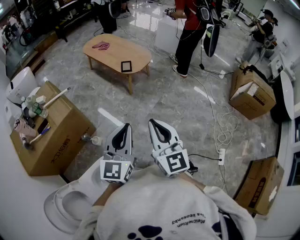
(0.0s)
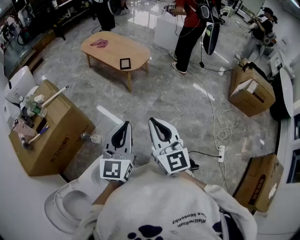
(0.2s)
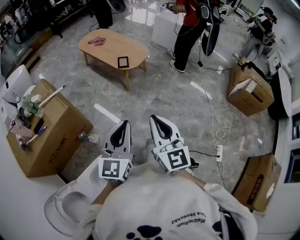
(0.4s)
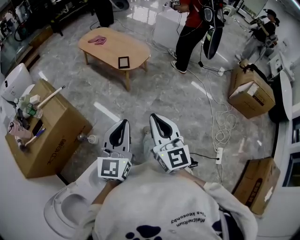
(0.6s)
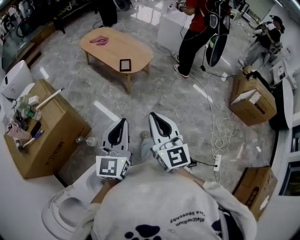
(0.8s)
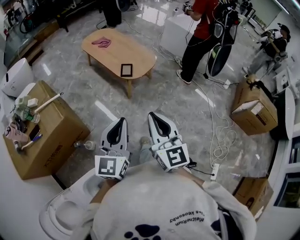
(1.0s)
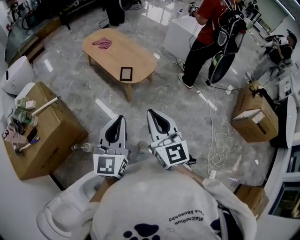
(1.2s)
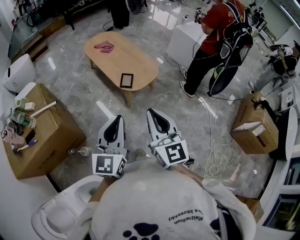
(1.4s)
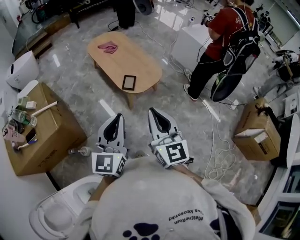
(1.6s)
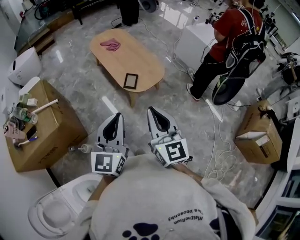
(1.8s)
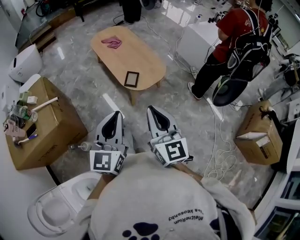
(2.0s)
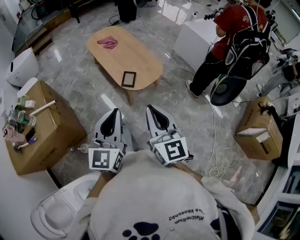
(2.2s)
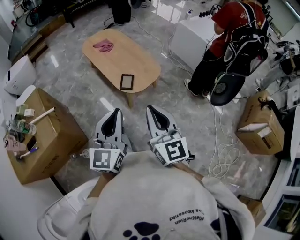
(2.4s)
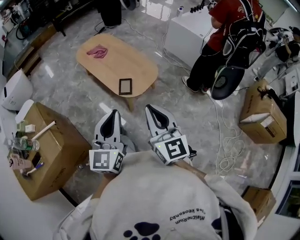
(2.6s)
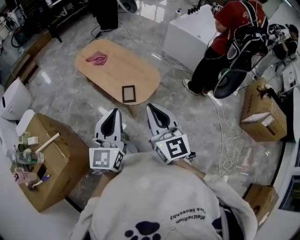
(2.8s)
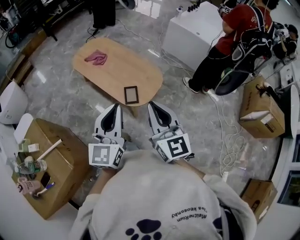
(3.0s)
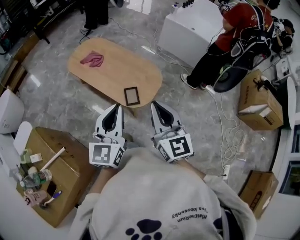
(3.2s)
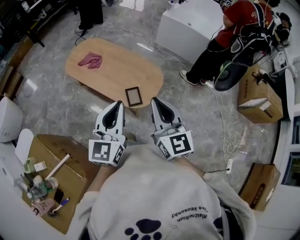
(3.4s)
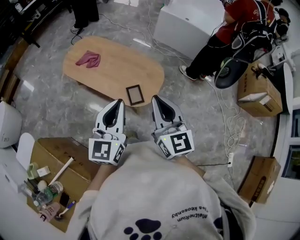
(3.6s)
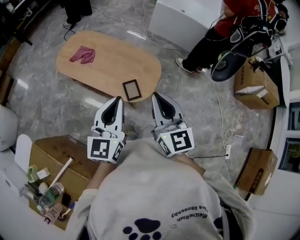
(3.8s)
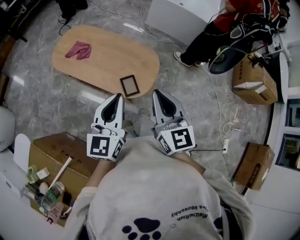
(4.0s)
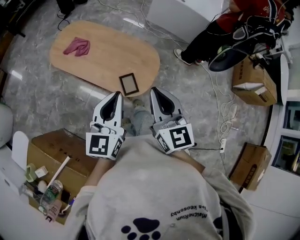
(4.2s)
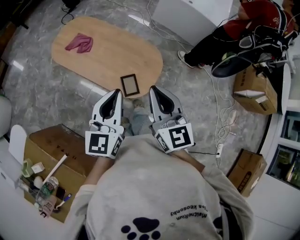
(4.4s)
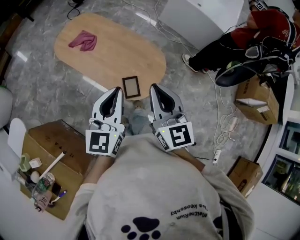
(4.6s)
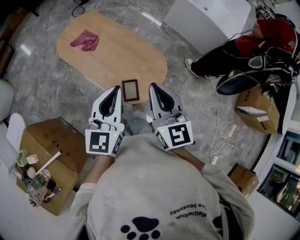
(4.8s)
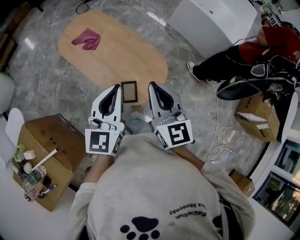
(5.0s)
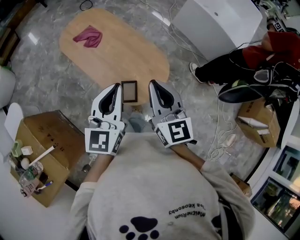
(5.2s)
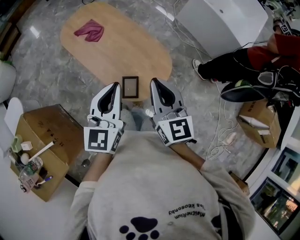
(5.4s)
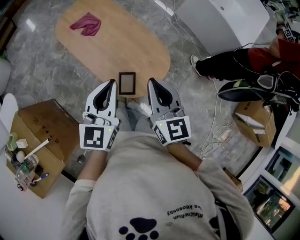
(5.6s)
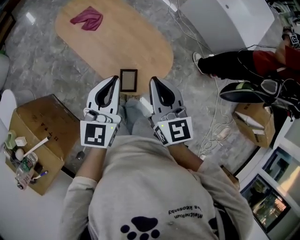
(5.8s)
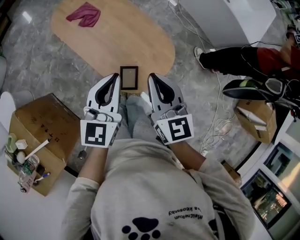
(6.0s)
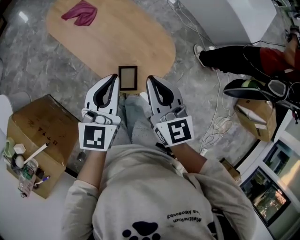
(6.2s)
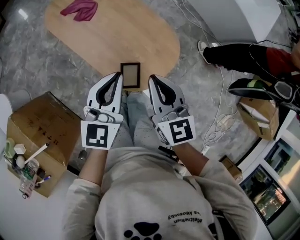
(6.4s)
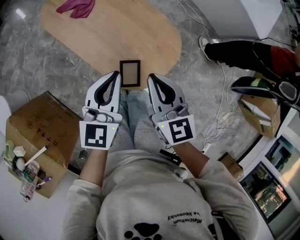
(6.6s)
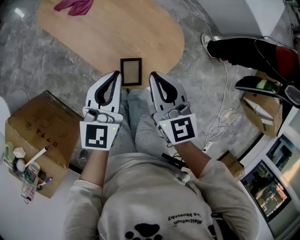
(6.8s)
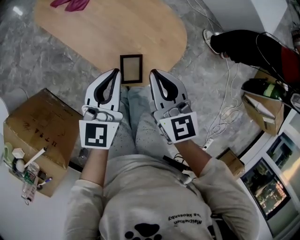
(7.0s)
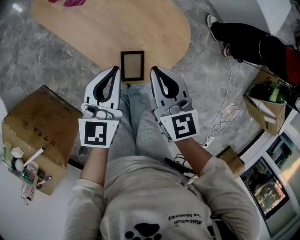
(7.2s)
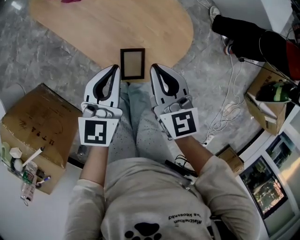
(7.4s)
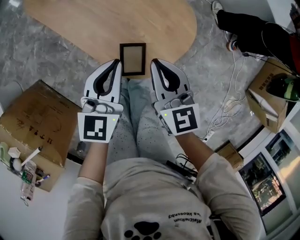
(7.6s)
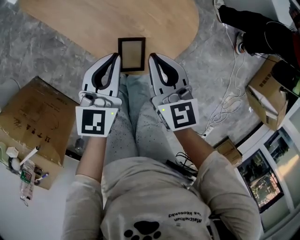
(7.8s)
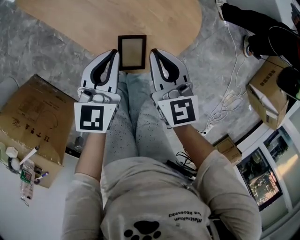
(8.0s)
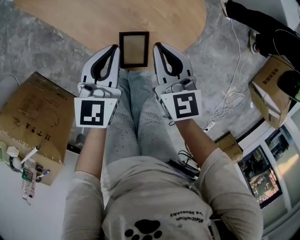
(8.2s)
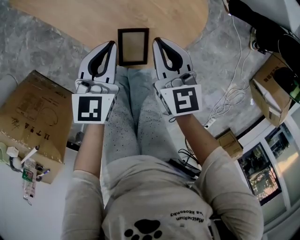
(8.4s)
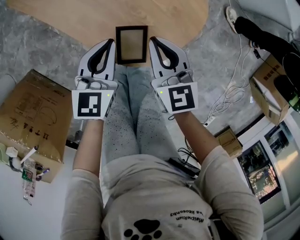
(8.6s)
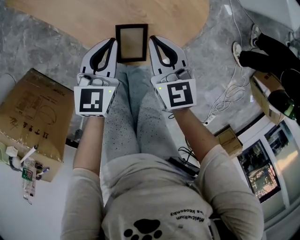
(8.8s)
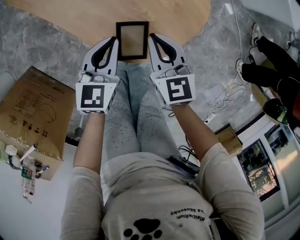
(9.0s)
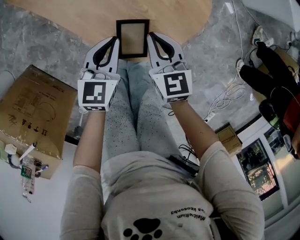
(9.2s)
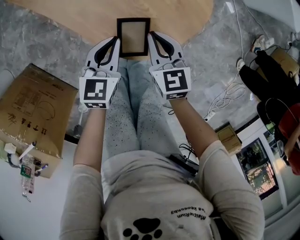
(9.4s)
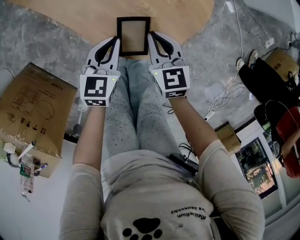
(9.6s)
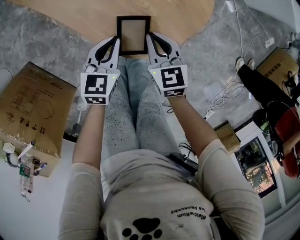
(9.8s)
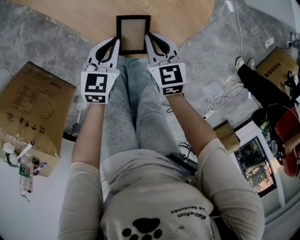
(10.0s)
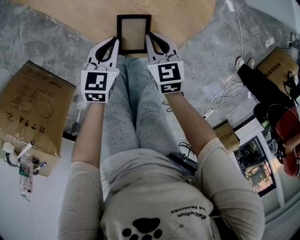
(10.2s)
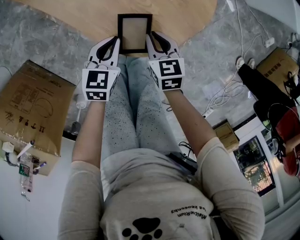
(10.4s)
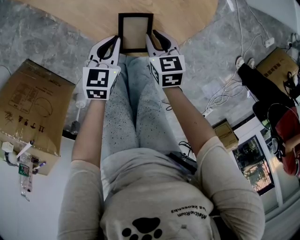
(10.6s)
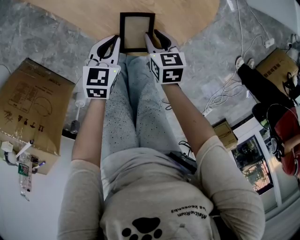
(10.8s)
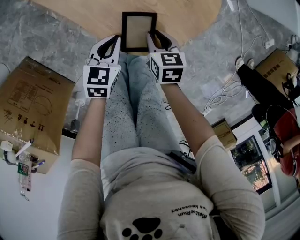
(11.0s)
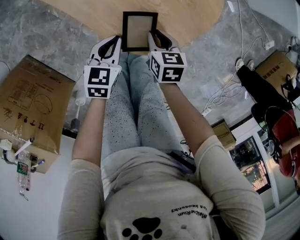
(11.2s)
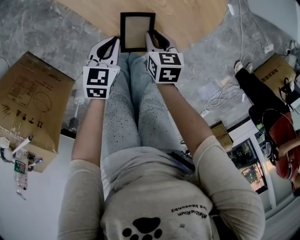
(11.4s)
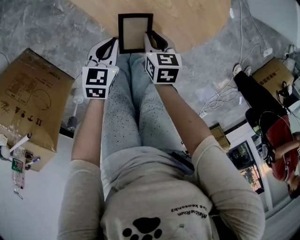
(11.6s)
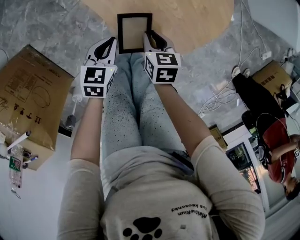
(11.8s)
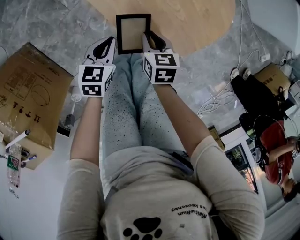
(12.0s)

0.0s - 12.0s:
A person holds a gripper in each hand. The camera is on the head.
0.0s - 1.6s: Both grippers move forward, about 35 cm.
1.6s - 3.0s: Both grippers travel together forward, some 20 cm.
3.0s - 4.4s: The right gripper moves forward and to the left, about 15 cm. Meanwhile the left gripper moves forward, roughly 15 cm.
4.4s - 6.0s: The two grippers go approximately 15 cm forward and downward.
6.0s - 7.6s: The two grippers go some 20 cm downward.
7.6s - 9.0s: Both grippers travel together downward, roughly 10 cm.
9.0s - 10.4s: The grippers both shift downward by about 10 cm.
10.4s - 12.0s: The grippers both shift to the left by about 10 cm.

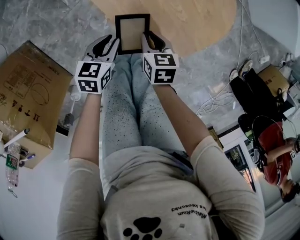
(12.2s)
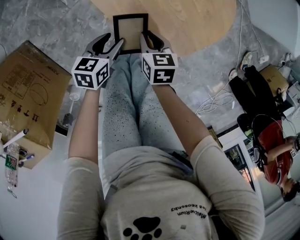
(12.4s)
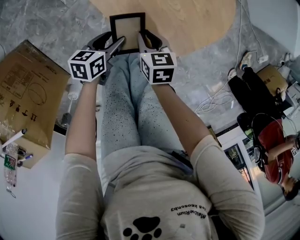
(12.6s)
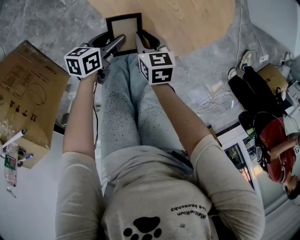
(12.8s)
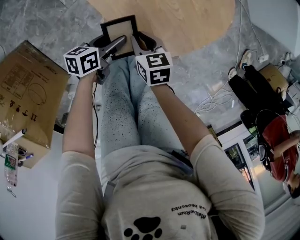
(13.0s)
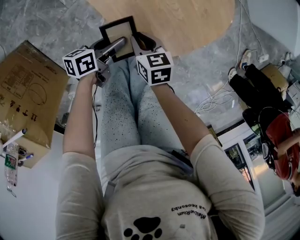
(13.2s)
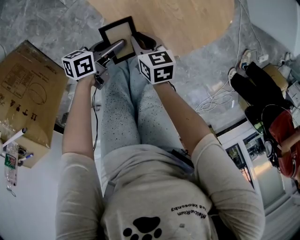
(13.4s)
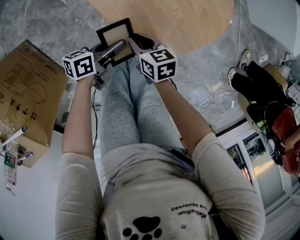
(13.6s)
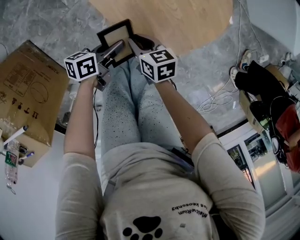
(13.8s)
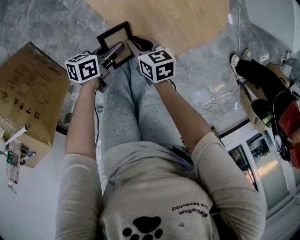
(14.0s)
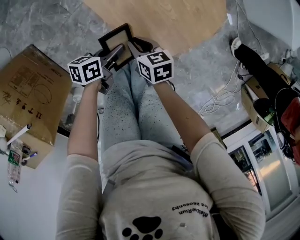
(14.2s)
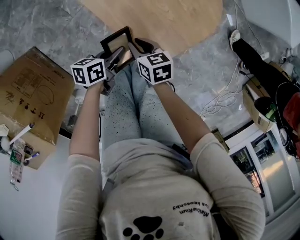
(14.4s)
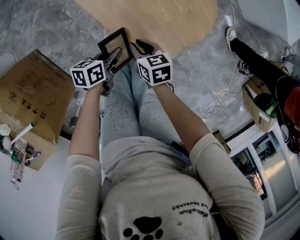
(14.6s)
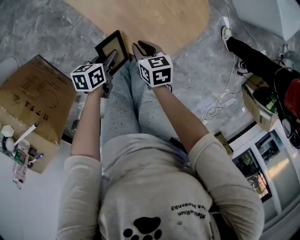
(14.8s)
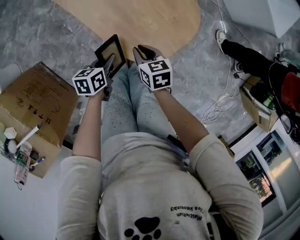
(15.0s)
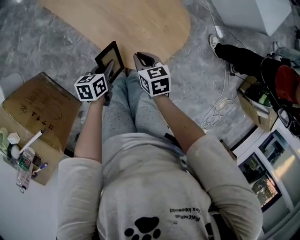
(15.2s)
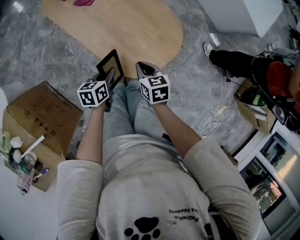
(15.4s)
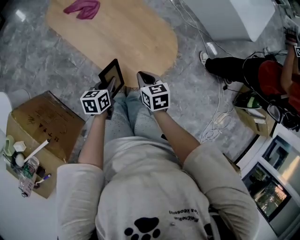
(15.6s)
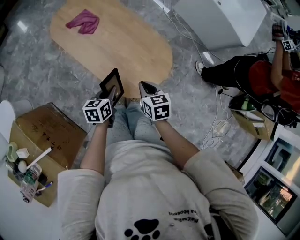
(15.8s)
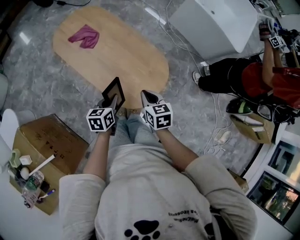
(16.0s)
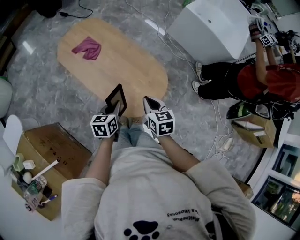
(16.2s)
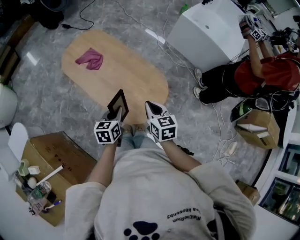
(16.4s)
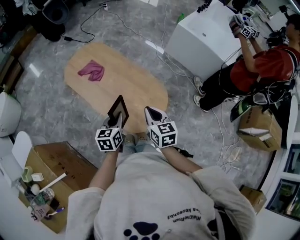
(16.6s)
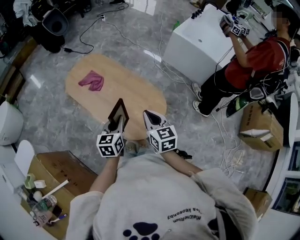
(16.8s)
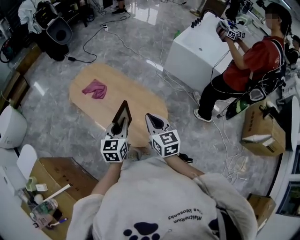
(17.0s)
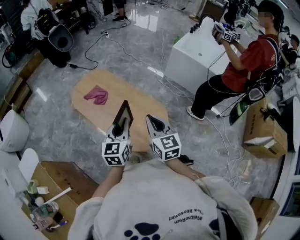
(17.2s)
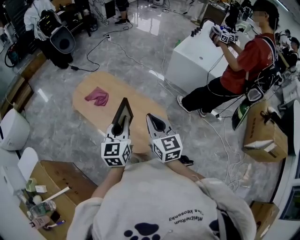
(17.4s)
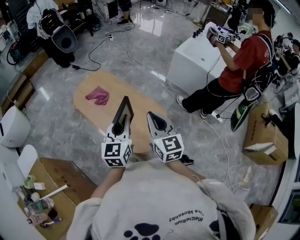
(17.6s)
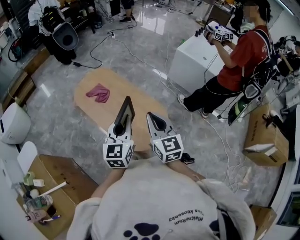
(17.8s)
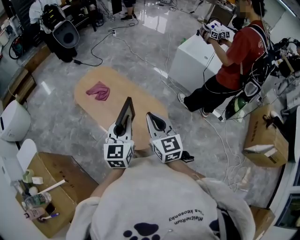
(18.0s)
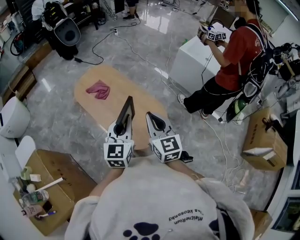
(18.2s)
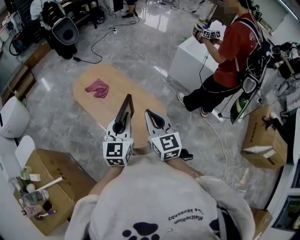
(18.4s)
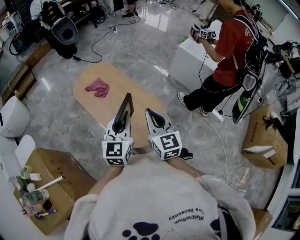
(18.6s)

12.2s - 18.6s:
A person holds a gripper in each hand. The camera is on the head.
12.2s - 13.8s: The left gripper swivels roughly 40 degrees, and opens, then closes once more.
13.8s - 15.4s: The left gripper moves upward, approximately 15 cm, and rotates some 30 degrees. Meanwhile the right gripper shifts some 20 cm upward and to the right.
15.4s - 17.0s: The grippers both shift upward by approximately 30 cm. The right gripper angles its fingers upward, by roughly 30 degrees, while the left gripper changes its angle by roughly 40 degrees.
17.0s - 18.6s: The right gripper is displaced upward by about 5 cm. The left gripper is displaced upward and to the right by some 10 cm.

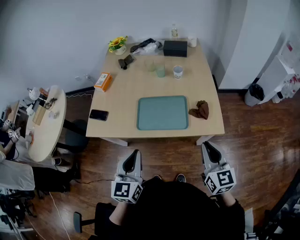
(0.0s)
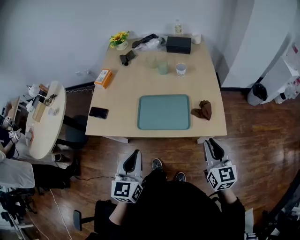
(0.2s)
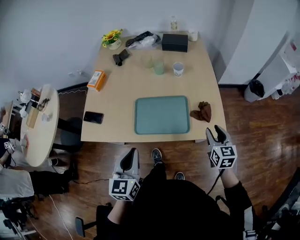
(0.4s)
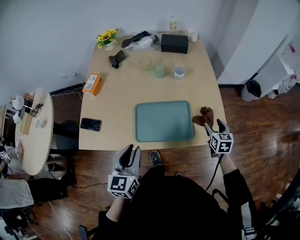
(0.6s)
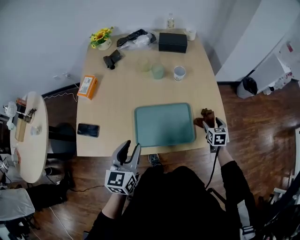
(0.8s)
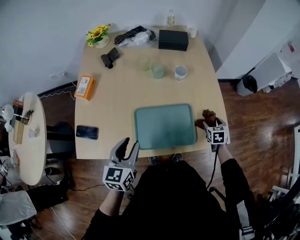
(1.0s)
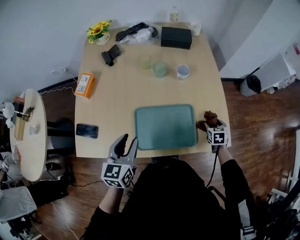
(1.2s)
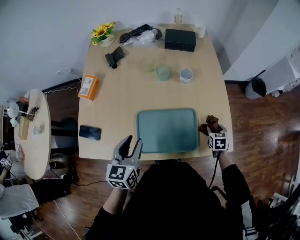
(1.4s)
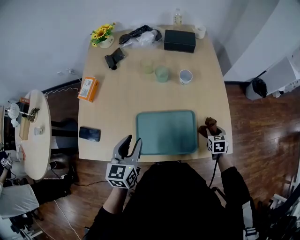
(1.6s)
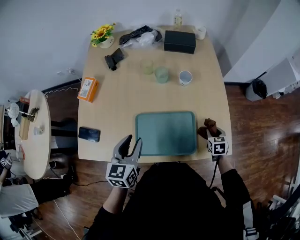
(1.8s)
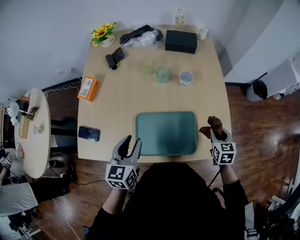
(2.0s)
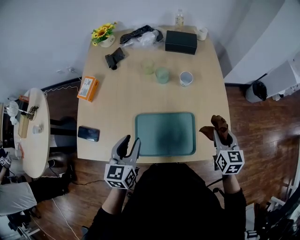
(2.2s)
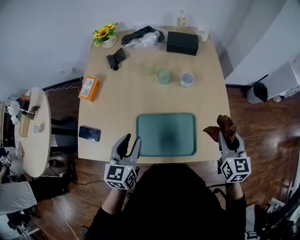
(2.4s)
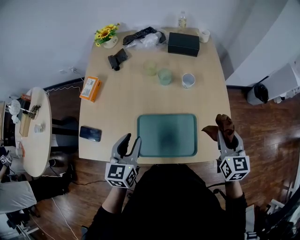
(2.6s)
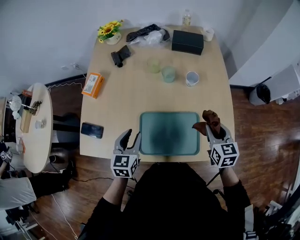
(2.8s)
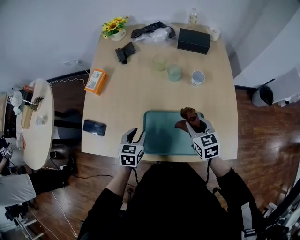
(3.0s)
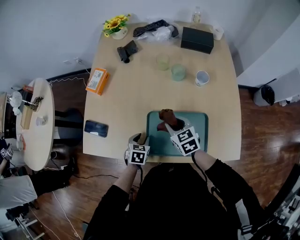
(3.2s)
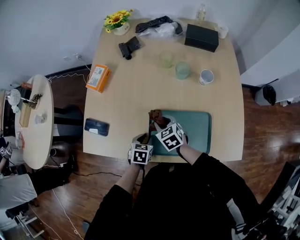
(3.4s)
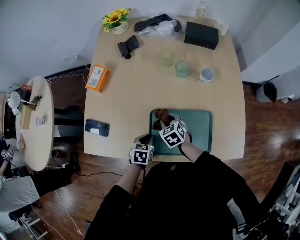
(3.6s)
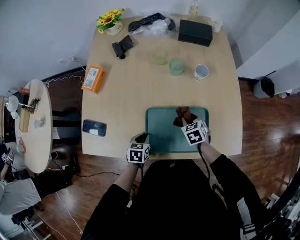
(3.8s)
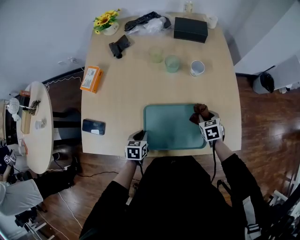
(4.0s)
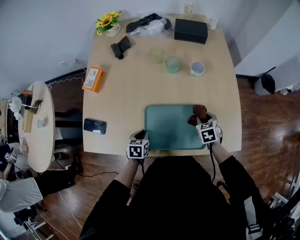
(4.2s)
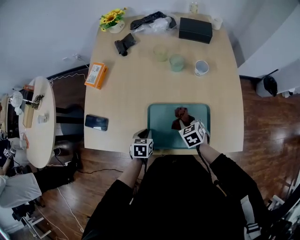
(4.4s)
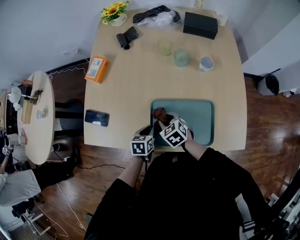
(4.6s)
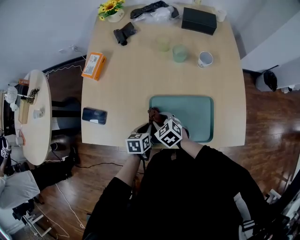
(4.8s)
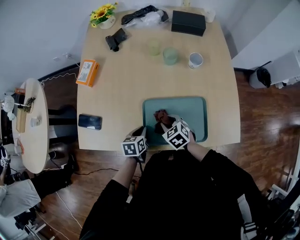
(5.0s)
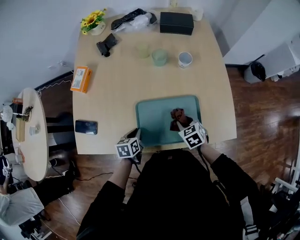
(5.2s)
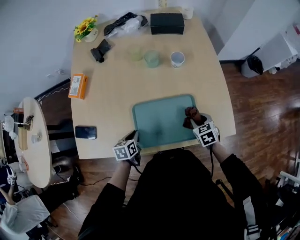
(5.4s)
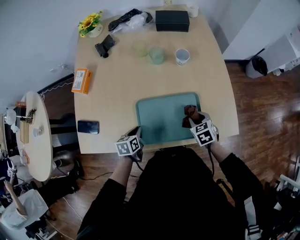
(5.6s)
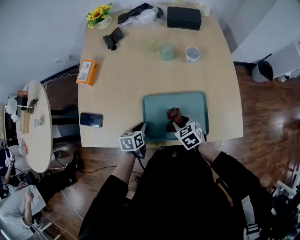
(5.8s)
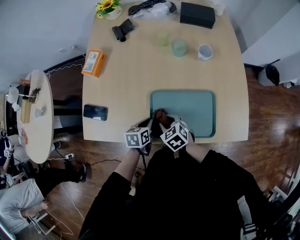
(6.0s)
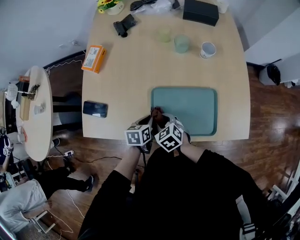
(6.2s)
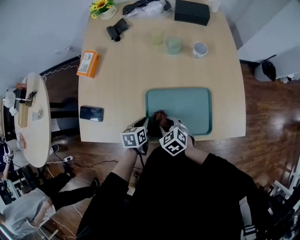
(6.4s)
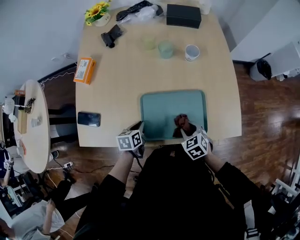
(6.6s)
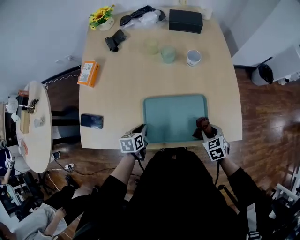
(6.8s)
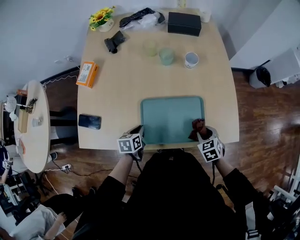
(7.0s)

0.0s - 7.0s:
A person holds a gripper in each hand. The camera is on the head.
0.0s - 1.4s: The right gripper heads downward and forward, covering approximately 40 cm, points its fingers about 40 degrees further downward, and opens its fingers. The left gripper is displaced forward by about 25 cm, and opens.
1.4s - 2.8s: The right gripper moves upward and to the left, roughly 20 cm, and swivels approximately 30 degrees, while the left gripper ends up some 5 cm from where it was.
2.8s - 4.2s: Both grippers travel together downward, some 15 cm. The right gripper reaches roughly 30 cm to the left, then returns, and changes its angle by some 30 degrees. Meanwhile the left gripper swivels about 30 degrees, and closes up.
4.2s - 5.6s: The right gripper shifts approximately 5 cm backward, and reaches approximately 25 cm to the left, then returns.
5.6s - 7.0s: The right gripper is displaced backward by about 5 cm, and moves about 25 cm to the left and comes back.
